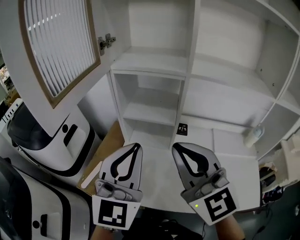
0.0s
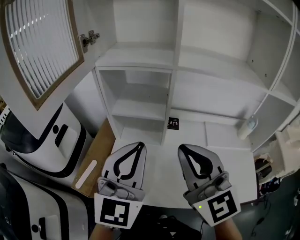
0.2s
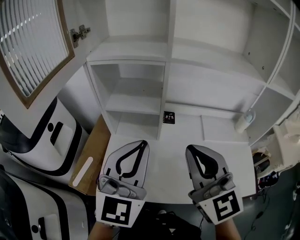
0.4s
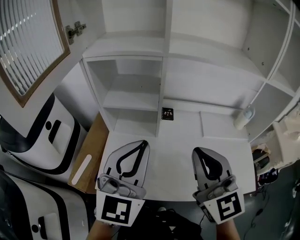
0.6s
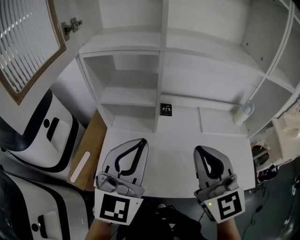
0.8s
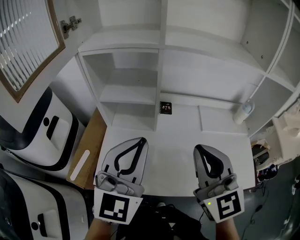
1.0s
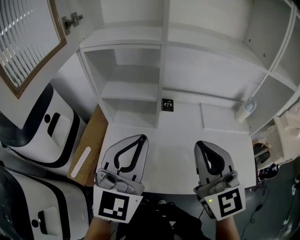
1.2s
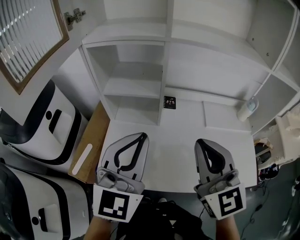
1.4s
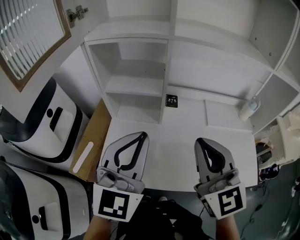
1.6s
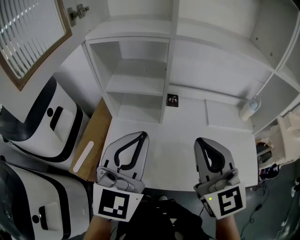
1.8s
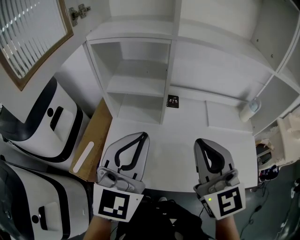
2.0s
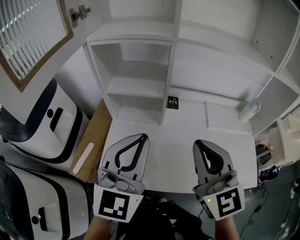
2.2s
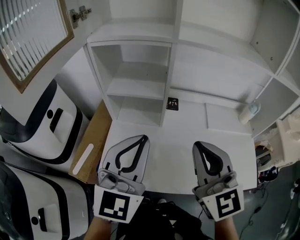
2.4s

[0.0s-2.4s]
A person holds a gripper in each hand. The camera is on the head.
0.0s to 1.2s: The right gripper travels to the right and downward by about 15 cm, while the left gripper is displaced to the right by approximately 10 cm.
1.2s to 2.4s: The grippers stay close to where they were, moving slightly.

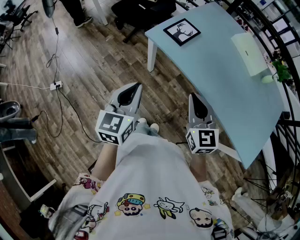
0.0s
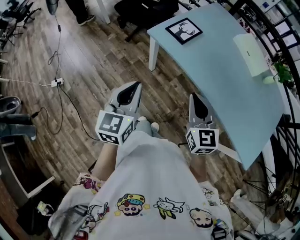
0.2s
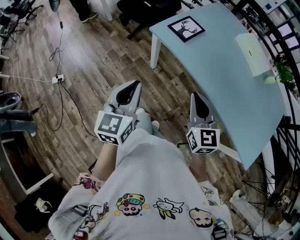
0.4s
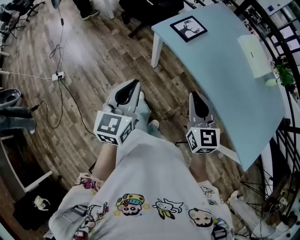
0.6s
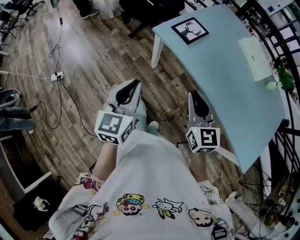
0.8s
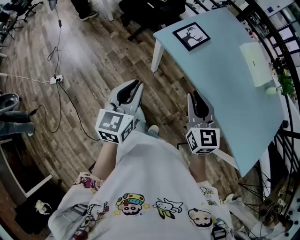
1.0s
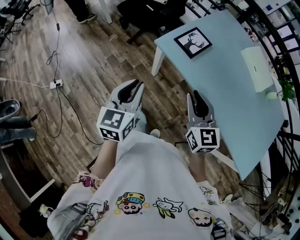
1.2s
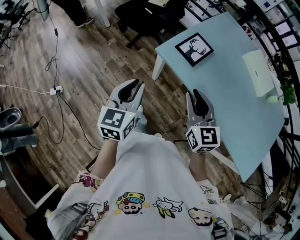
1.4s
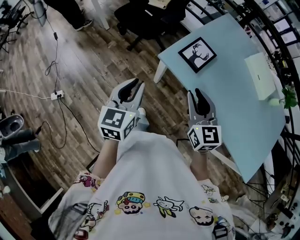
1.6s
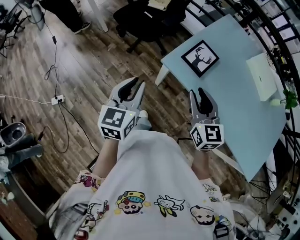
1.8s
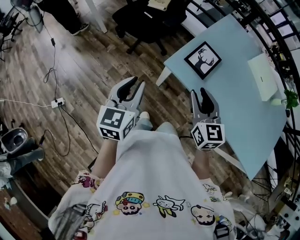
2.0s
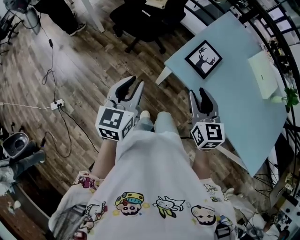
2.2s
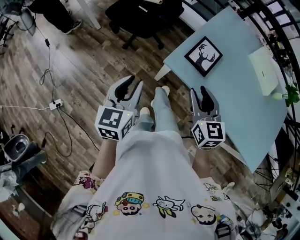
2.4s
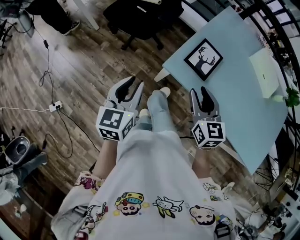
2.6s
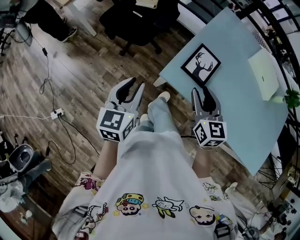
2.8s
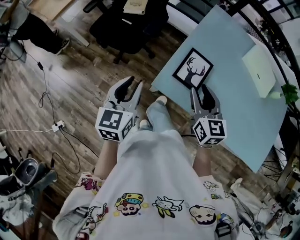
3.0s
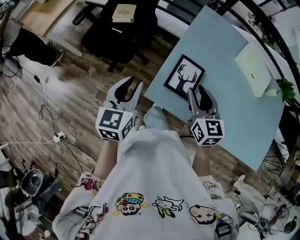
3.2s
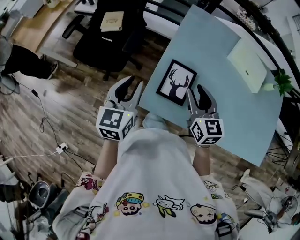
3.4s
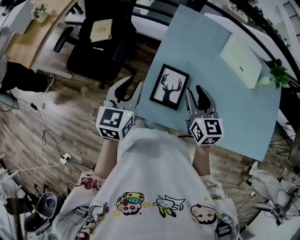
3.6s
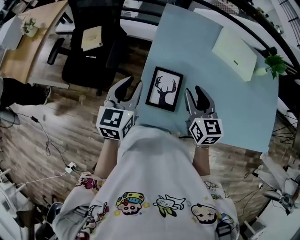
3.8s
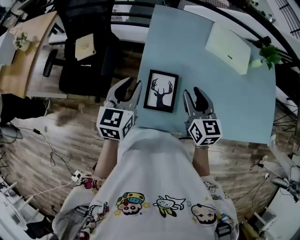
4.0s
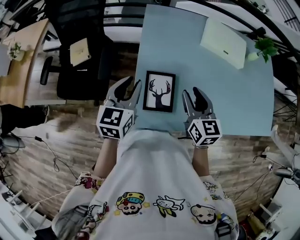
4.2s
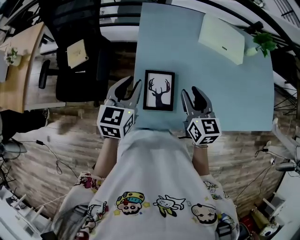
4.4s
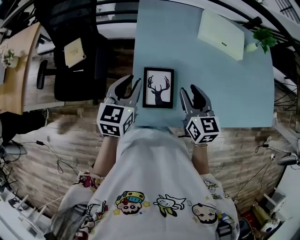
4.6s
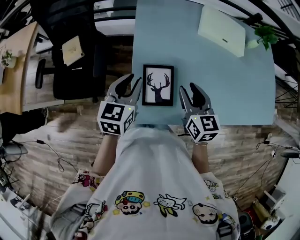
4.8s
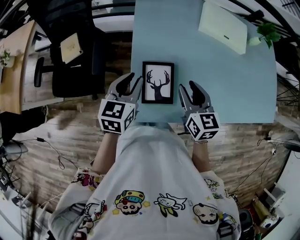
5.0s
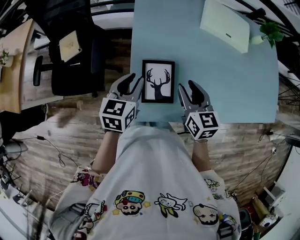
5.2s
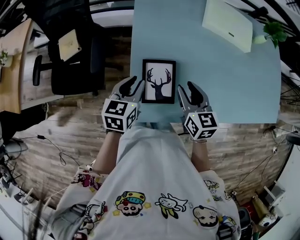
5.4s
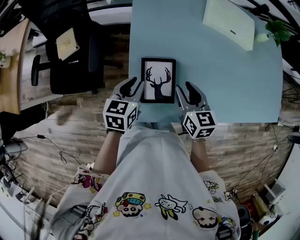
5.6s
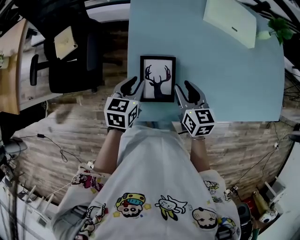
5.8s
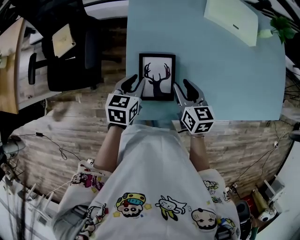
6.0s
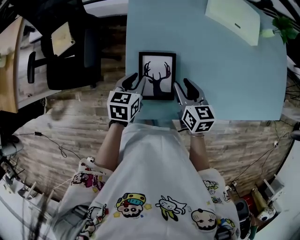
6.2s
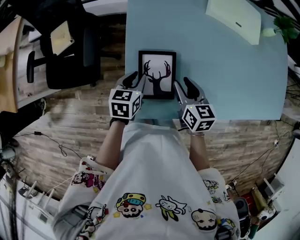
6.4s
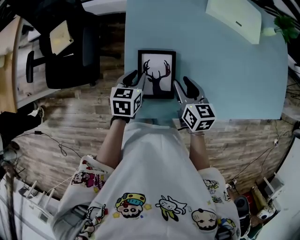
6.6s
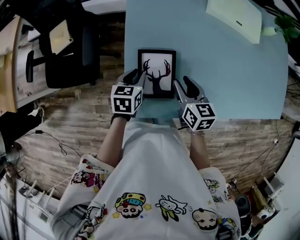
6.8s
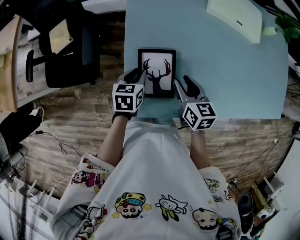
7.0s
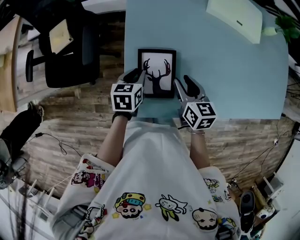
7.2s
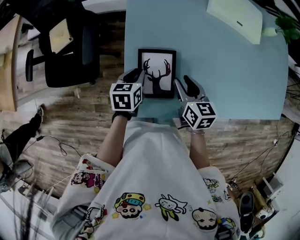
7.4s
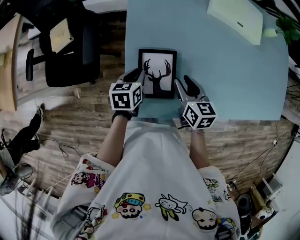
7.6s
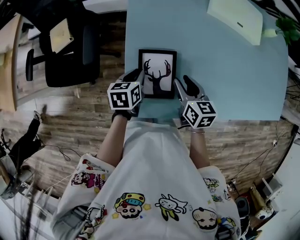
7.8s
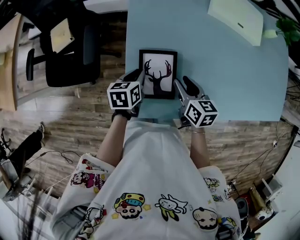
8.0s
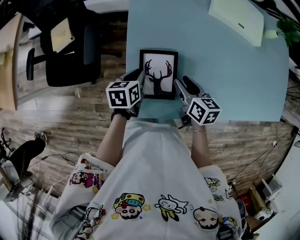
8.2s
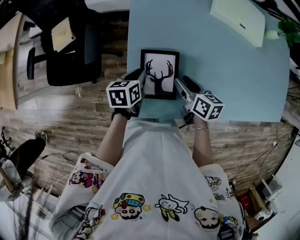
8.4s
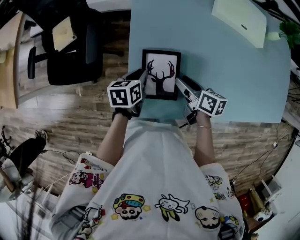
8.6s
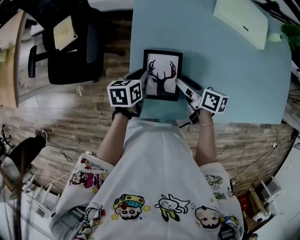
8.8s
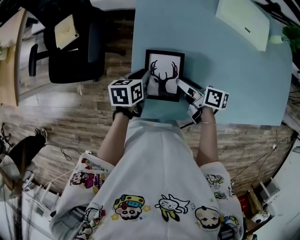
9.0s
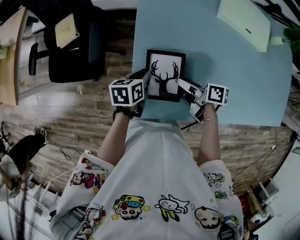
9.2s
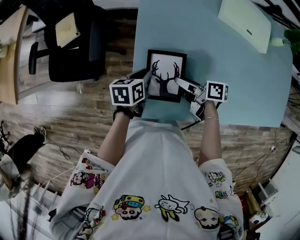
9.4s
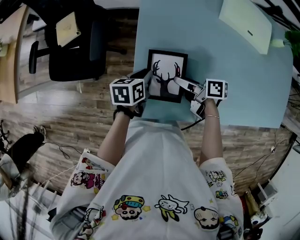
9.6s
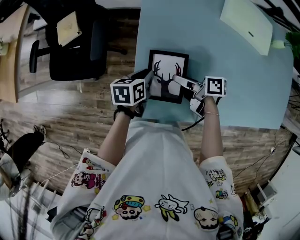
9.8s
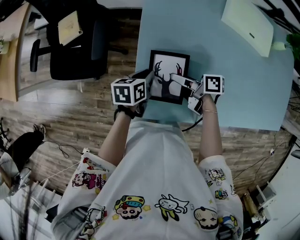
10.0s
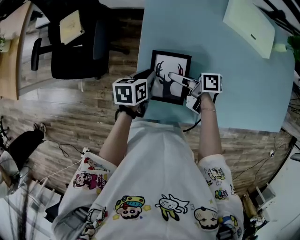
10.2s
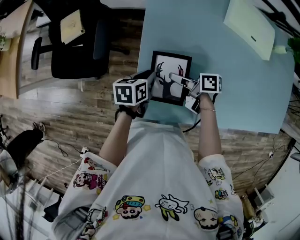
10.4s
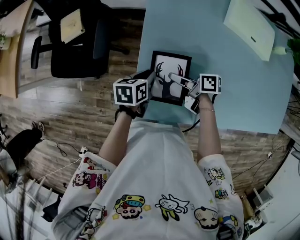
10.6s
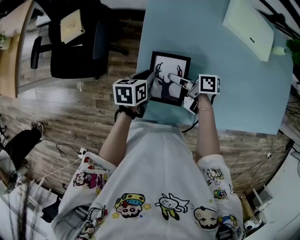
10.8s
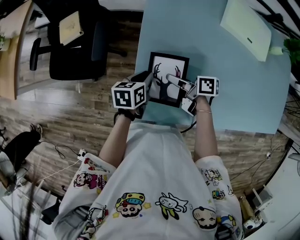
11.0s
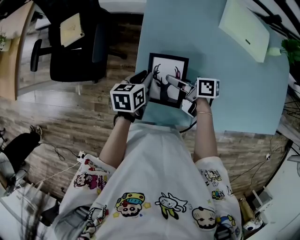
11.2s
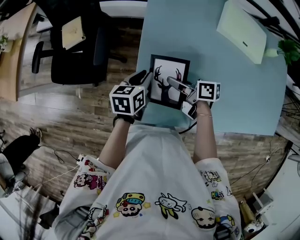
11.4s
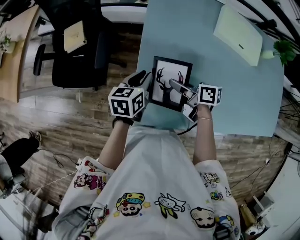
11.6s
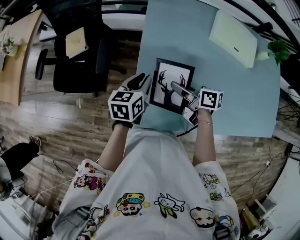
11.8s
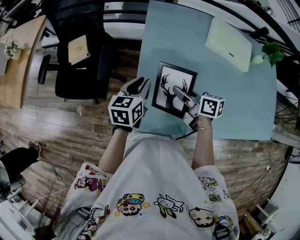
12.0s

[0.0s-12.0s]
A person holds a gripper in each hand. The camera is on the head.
0.0s to 1.6s: The two grippers go roughly 20 cm forward and to the left. The right gripper opens up.
1.6s to 3.0s: Both grippers move forward, some 20 cm.
3.0s to 4.4s: The right gripper moves about 15 cm, and changes its angle by about 30 degrees. Meanwhile the left gripper shifts by roughly 25 cm, and changes its angle by roughly 30 degrees.
4.4s to 6.0s: Both grippers travel together downward, approximately 15 cm. The left gripper turns by about 20 degrees.
6.0s to 7.6s: The left gripper shifts roughly 5 cm downward.
7.6s to 9.0s: The right gripper turns by about 40 degrees.
9.0s to 10.4s: The right gripper shifts approximately 5 cm to the left, and closes.
10.4s to 12.0s: Both grippers travel together upward, roughly 10 cm. The right gripper turns by roughly 30 degrees. The left gripper rotates roughly 30 degrees.

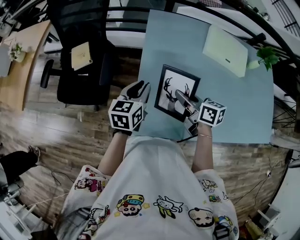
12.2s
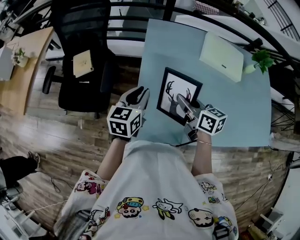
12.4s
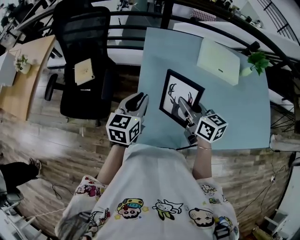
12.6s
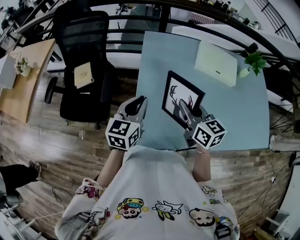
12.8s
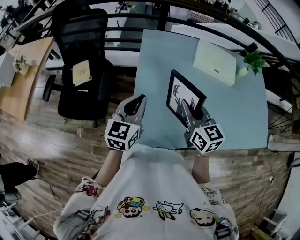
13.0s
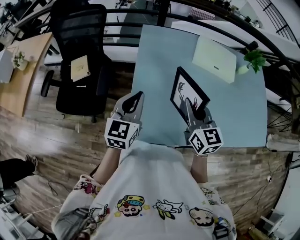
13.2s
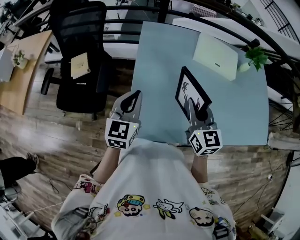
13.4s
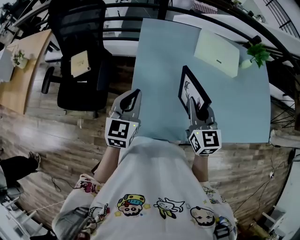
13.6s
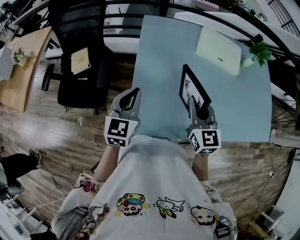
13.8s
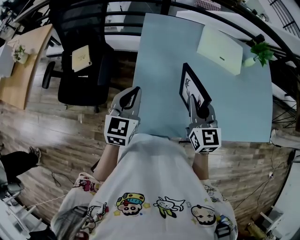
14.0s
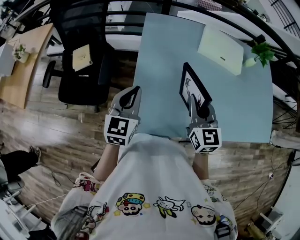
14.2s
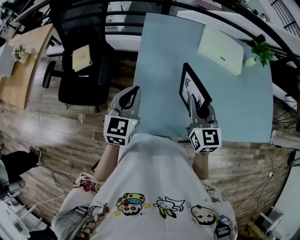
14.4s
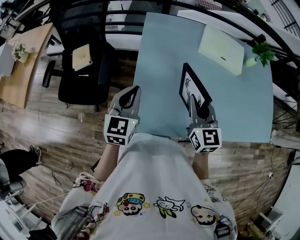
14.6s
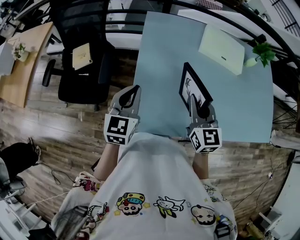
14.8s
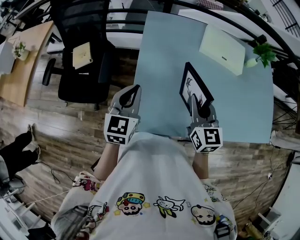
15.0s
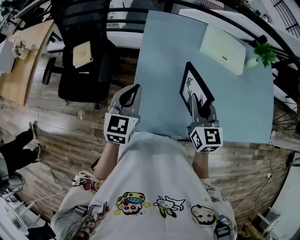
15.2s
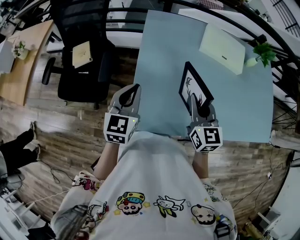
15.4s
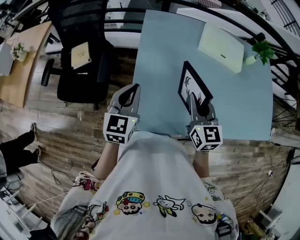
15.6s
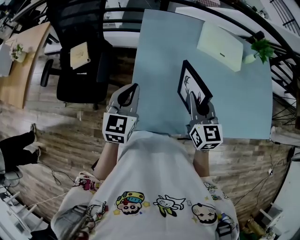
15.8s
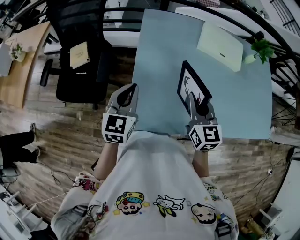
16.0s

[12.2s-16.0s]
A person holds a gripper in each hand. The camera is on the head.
12.2s to 13.4s: The right gripper goes approximately 10 cm upward and to the right, and changes its angle by roughly 50 degrees, while the left gripper is displaced upward by roughly 10 cm, swivels about 20 degrees, and closes up.
13.4s to 14.8s: The grippers stay close to where they were, moving slightly.
14.8s to 16.0s: Both grippers stay about where they are.

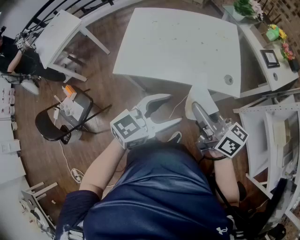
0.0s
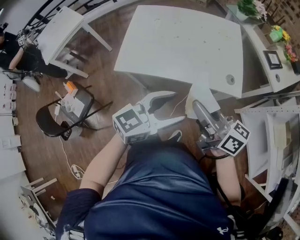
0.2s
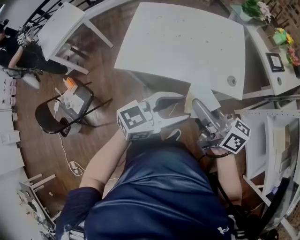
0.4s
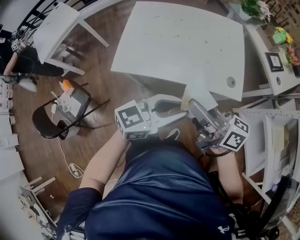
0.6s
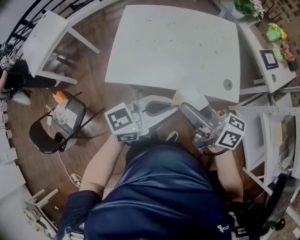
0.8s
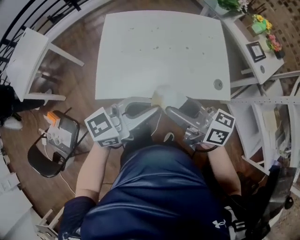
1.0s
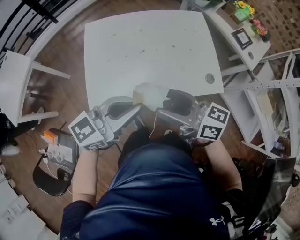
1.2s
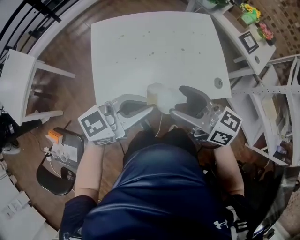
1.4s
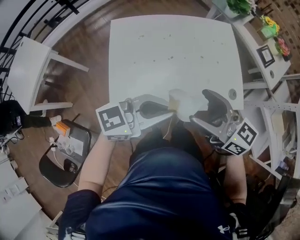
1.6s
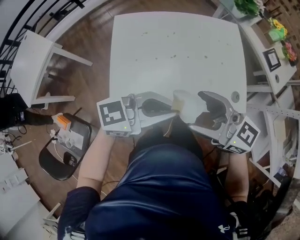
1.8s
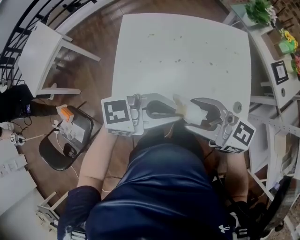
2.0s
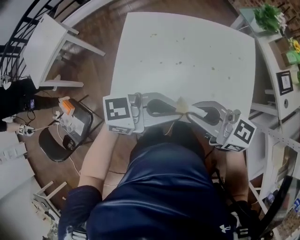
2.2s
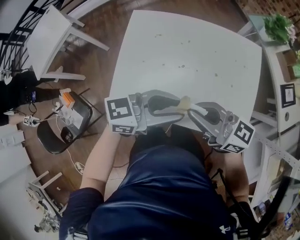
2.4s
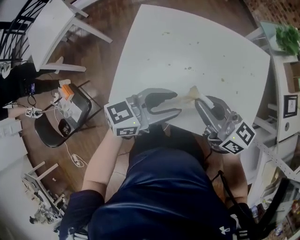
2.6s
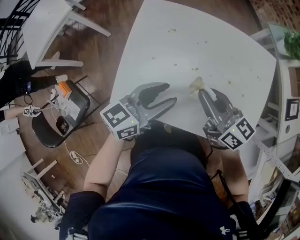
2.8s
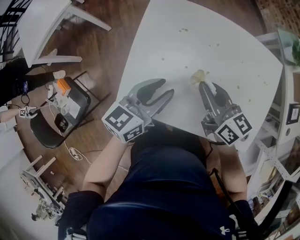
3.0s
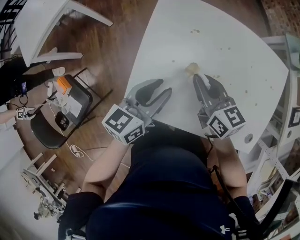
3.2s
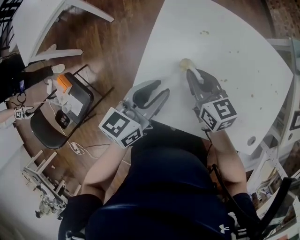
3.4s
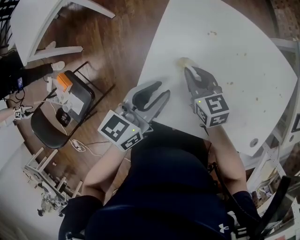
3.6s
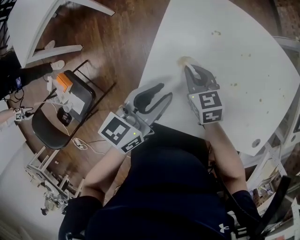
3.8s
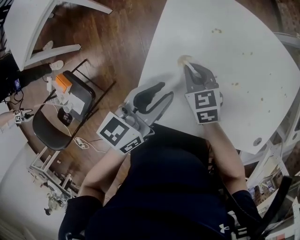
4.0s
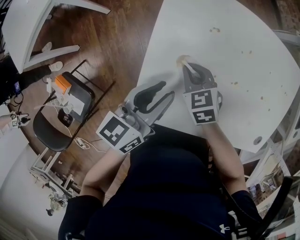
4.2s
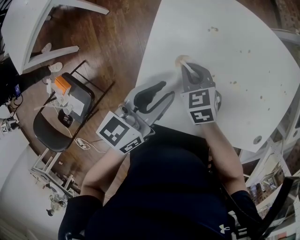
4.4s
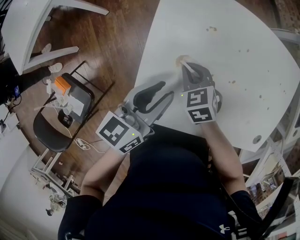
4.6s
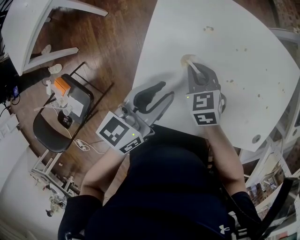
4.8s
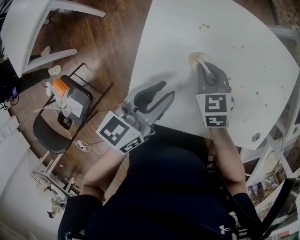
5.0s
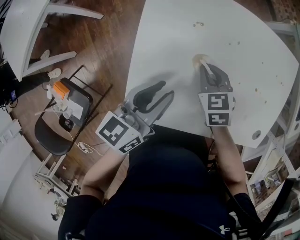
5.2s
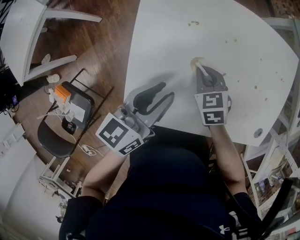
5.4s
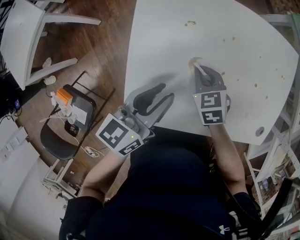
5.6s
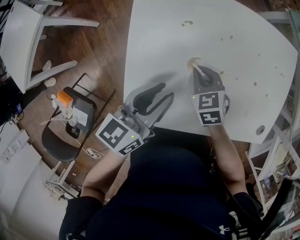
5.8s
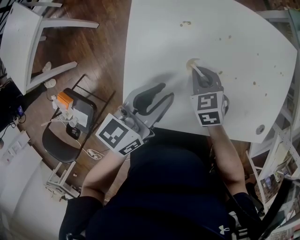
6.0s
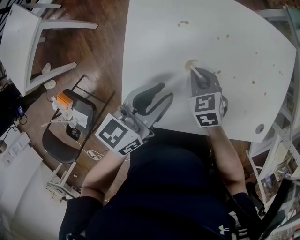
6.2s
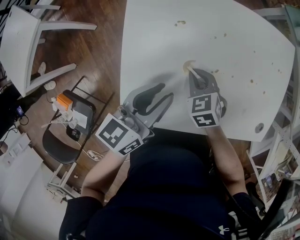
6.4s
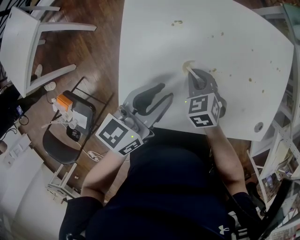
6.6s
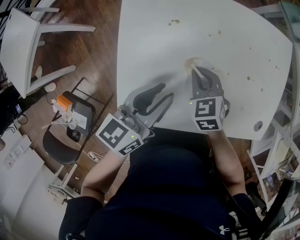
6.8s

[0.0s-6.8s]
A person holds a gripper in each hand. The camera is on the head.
0.0s to 1.4s: Both grippers travel together forward and to the left, roughly 20 cm. The left gripper rotates some 30 degrees, and closes up. Meanwhile the right gripper opens up.
1.4s to 2.8s: The left gripper changes place by roughly 20 cm, turns by roughly 40 degrees, and opens. The right gripper ends up approximately 20 cm from where it was, and closes its fingers.
2.8s to 4.0s: The left gripper shifts some 20 cm to the left, downward and forward, while the right gripper is displaced downward, to the left and forward by roughly 30 cm, and tilts its fingers about 40 degrees downward.
4.0s to 5.4s: The left gripper shifts roughly 5 cm to the right; the right gripper is displaced to the right by about 10 cm.
5.4s to 6.8s: The grippers stay close to where they were, moving slightly.
